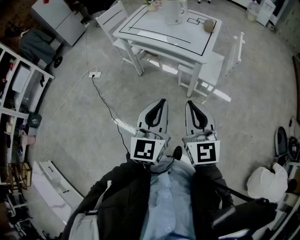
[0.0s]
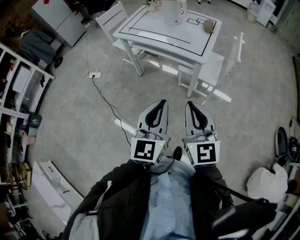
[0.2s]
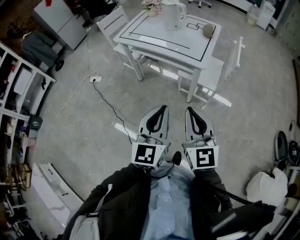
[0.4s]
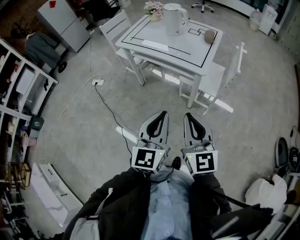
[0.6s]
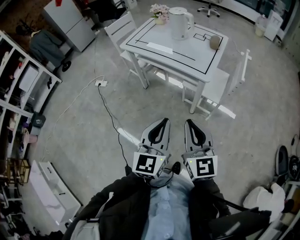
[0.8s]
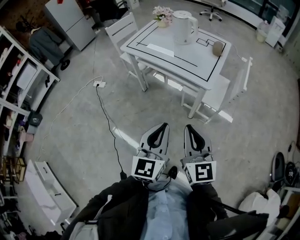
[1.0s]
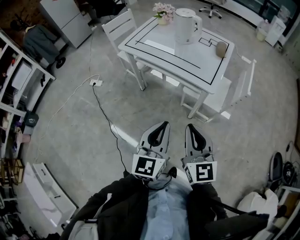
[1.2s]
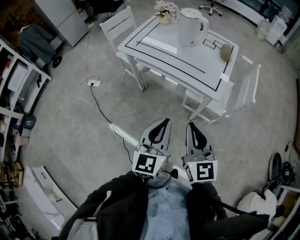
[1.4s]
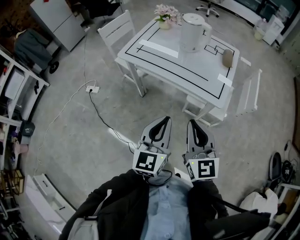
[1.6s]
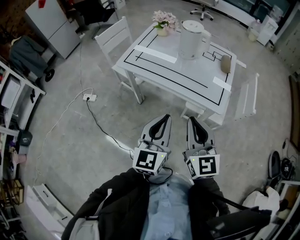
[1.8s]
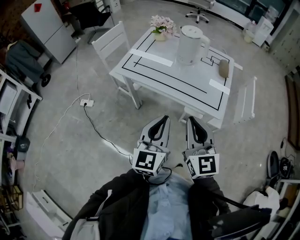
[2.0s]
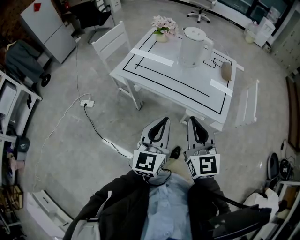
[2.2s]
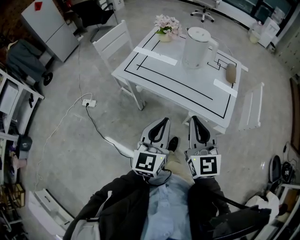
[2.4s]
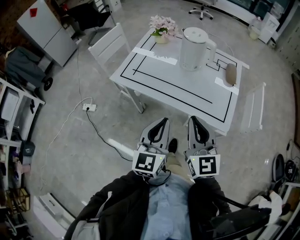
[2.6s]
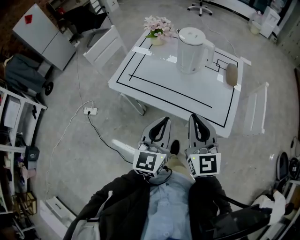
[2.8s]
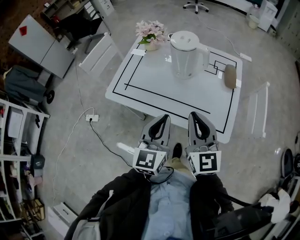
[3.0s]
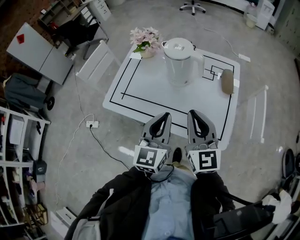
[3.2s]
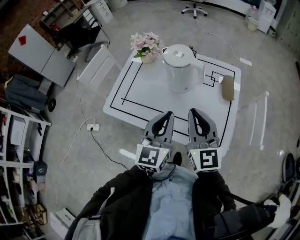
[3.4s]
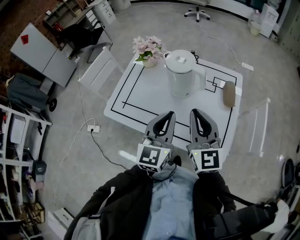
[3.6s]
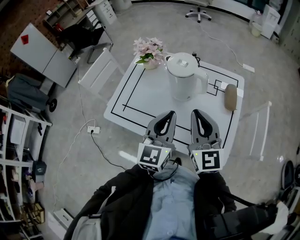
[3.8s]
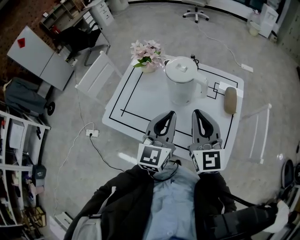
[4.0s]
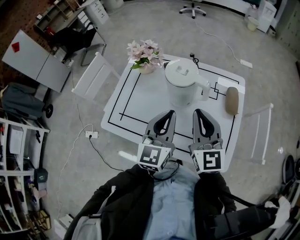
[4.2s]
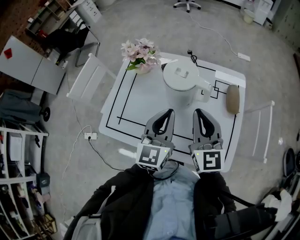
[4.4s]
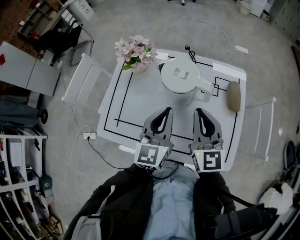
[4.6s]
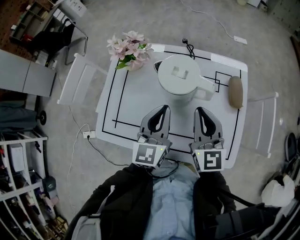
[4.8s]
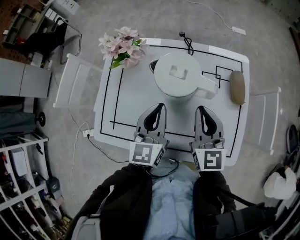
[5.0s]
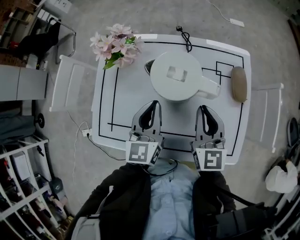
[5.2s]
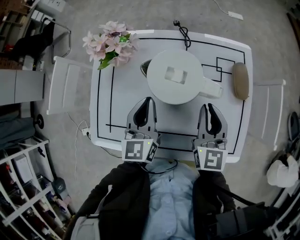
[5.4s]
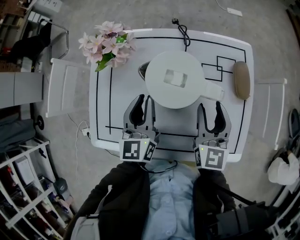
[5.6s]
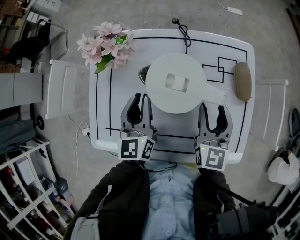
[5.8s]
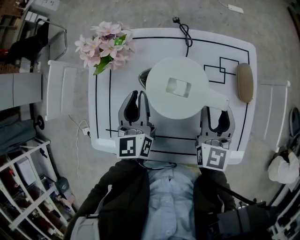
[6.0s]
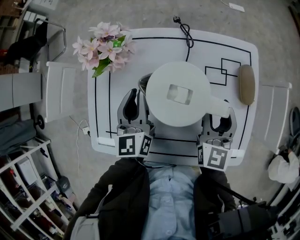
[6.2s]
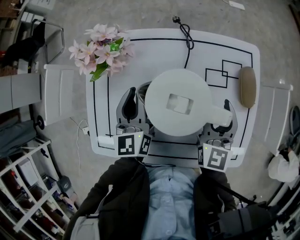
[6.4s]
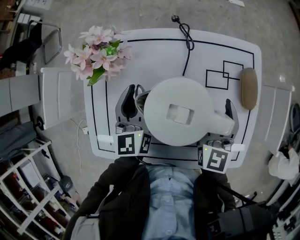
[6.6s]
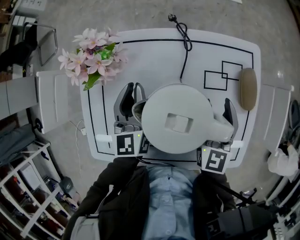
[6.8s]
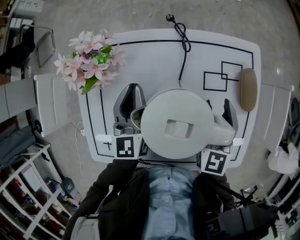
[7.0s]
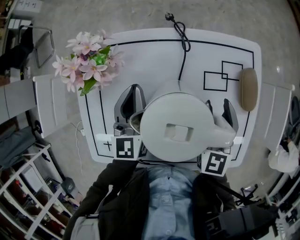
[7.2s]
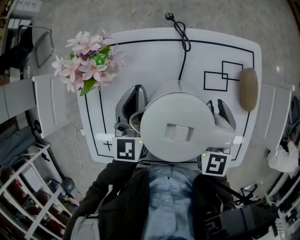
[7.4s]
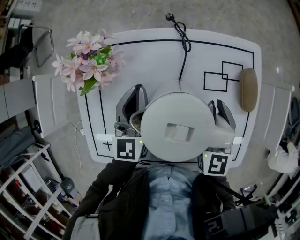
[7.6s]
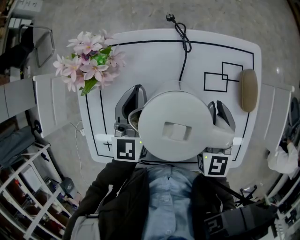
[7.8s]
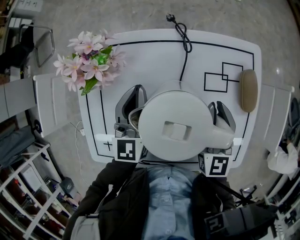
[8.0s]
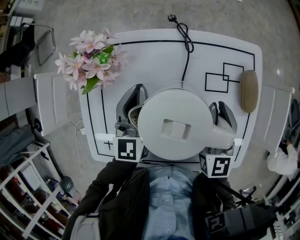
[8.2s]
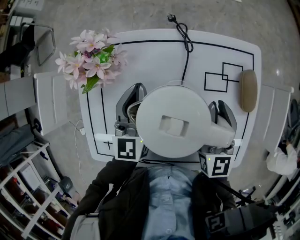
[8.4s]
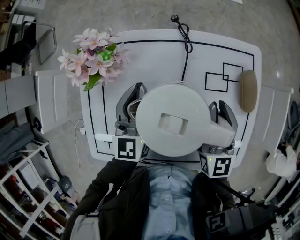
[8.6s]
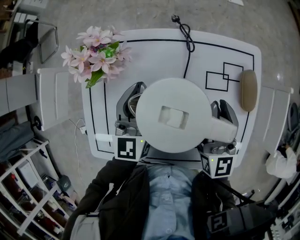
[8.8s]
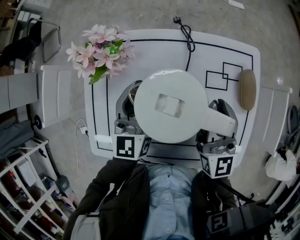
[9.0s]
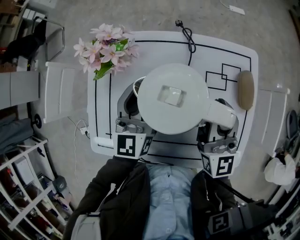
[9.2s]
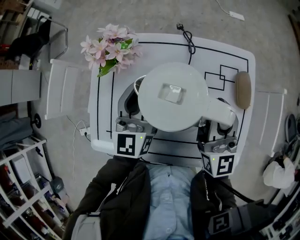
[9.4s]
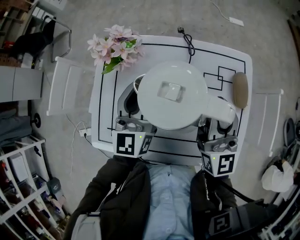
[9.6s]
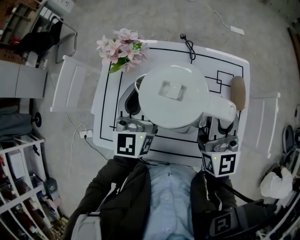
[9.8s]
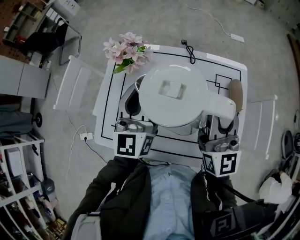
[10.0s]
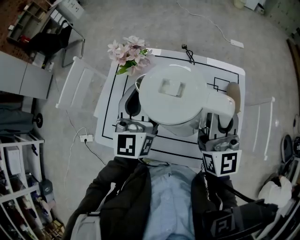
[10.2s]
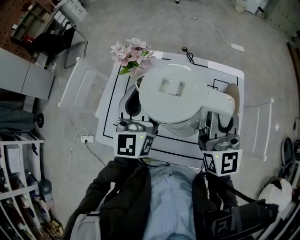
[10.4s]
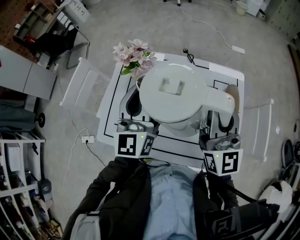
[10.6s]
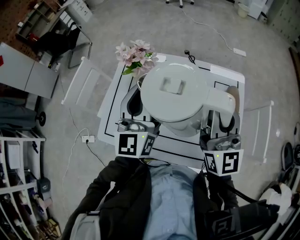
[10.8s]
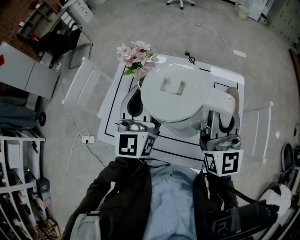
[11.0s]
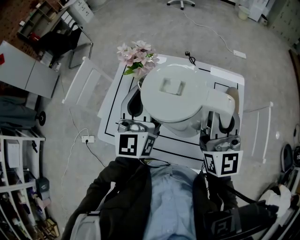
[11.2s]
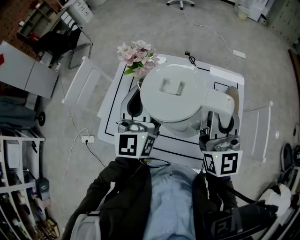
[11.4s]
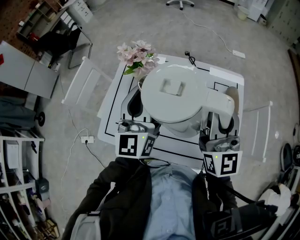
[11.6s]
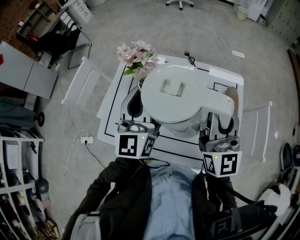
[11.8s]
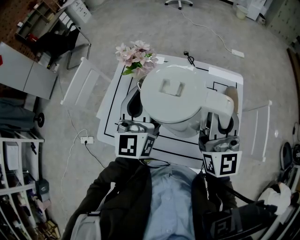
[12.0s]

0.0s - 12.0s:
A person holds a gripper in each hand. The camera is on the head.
0.0s - 1.6s: Both grippers travel together forward, about 20 cm.
1.6s - 3.0s: The two grippers go roughly 25 cm forward.
3.0s - 4.4s: The two grippers go roughly 20 cm forward.
4.4s - 6.0s: The left gripper goes approximately 20 cm forward, downward and to the left, while the right gripper is displaced downward and forward by roughly 15 cm, swivels some 30 degrees, and opens.
6.0s - 7.6s: The grippers both shift forward by about 5 cm. The right gripper closes up.
7.6s - 9.0s: The right gripper heads upward, covering roughly 5 cm.
9.0s - 10.4s: Both grippers move upward and backward, approximately 20 cm.
10.4s - 12.0s: There are only small adjustments of the grippers.

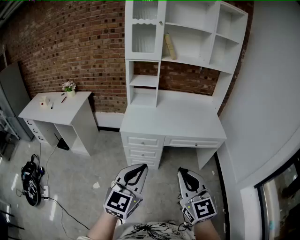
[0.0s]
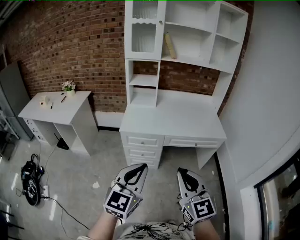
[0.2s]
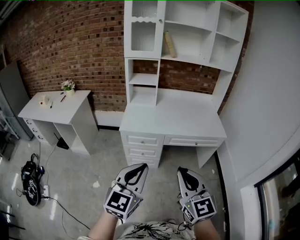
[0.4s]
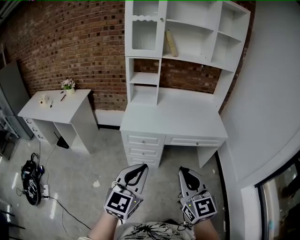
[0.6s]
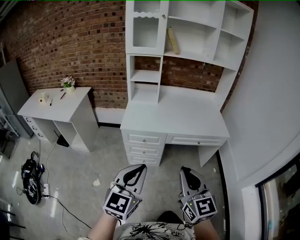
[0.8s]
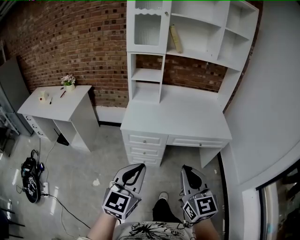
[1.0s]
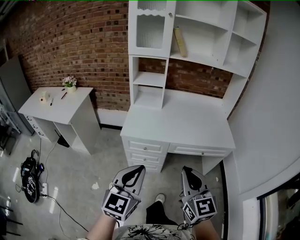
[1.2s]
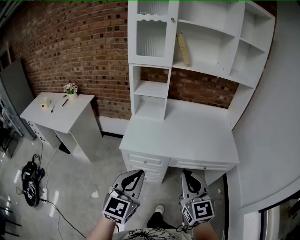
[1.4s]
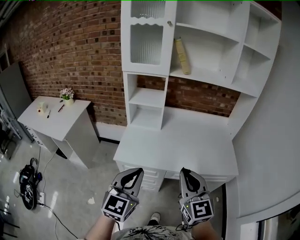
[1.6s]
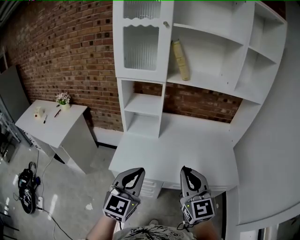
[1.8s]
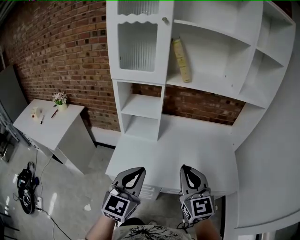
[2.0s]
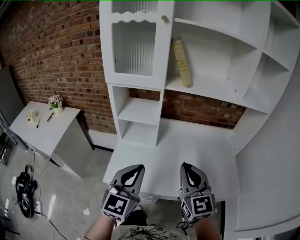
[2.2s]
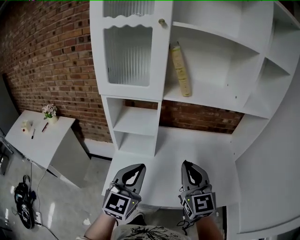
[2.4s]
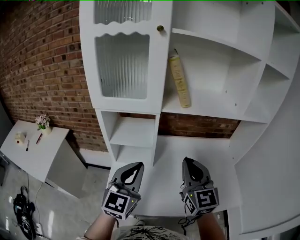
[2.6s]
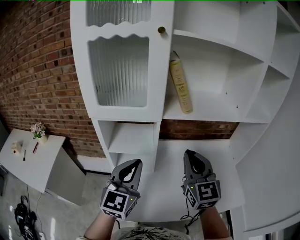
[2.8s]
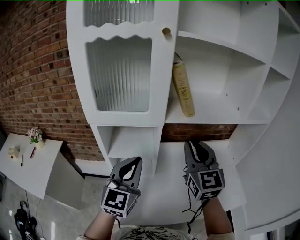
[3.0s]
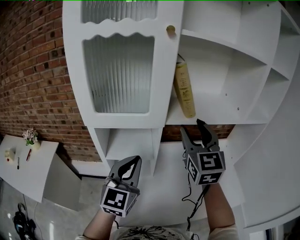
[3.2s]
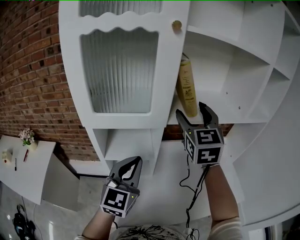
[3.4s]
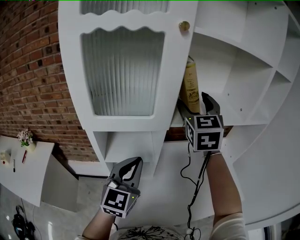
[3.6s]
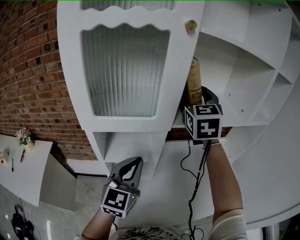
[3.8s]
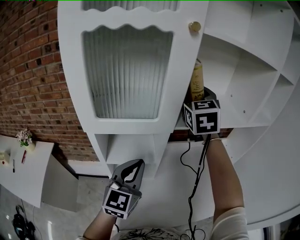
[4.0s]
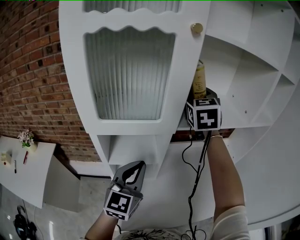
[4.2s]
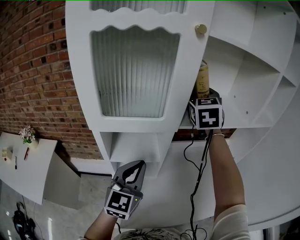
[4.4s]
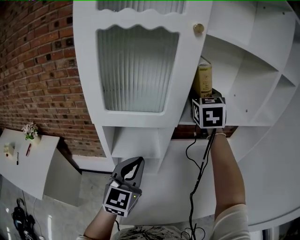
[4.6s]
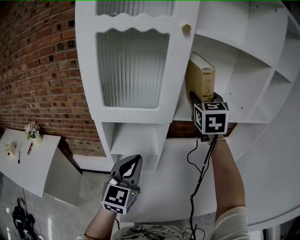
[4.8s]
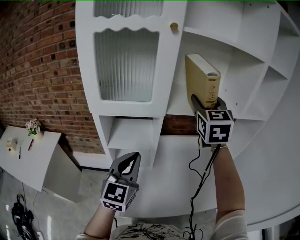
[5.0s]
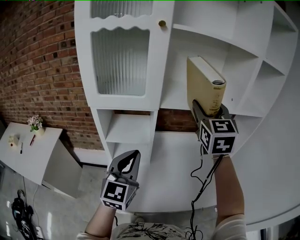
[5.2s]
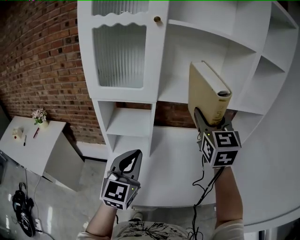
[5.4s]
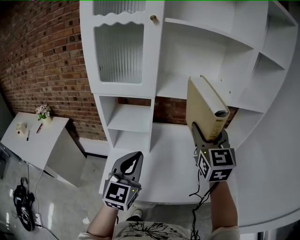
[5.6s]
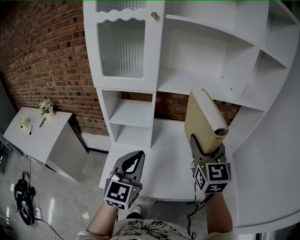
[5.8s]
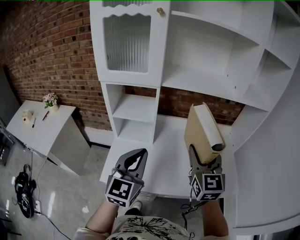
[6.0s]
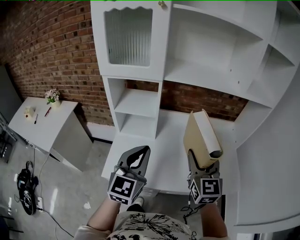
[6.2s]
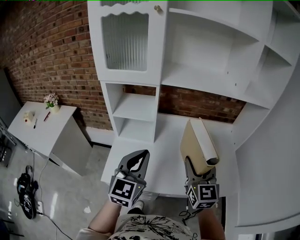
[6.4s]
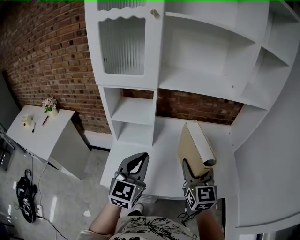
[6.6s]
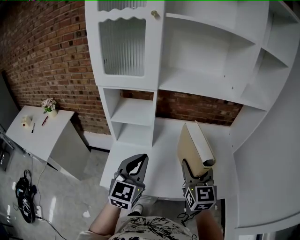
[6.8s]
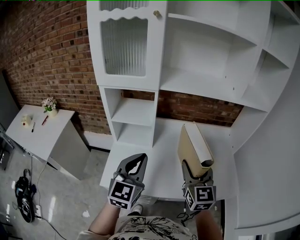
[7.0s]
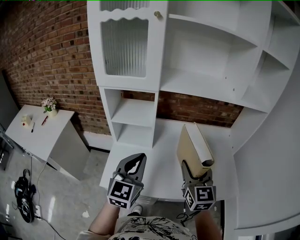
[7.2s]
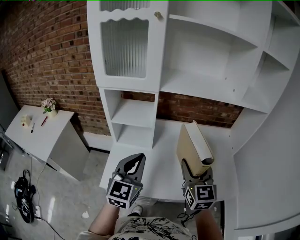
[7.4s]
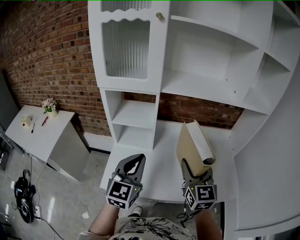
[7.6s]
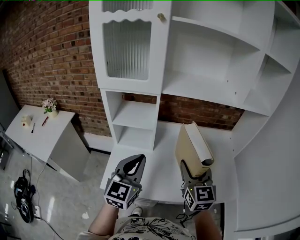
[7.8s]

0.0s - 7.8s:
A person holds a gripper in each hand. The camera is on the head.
0.0s - 1.6s: Both grippers travel together forward, some 30 cm.
1.6s - 3.2s: The pair of grippers is taken forward, roughly 50 cm. The right gripper turns by approximately 20 degrees, and opens.
3.2s - 4.6s: The right gripper heads forward, covering roughly 15 cm.
4.6s - 6.2s: The left gripper moves backward and to the right, some 20 cm, while the right gripper moves backward, downward and to the right, about 40 cm, and changes its angle by approximately 20 degrees.
6.2s - 7.8s: The grippers move only a little.

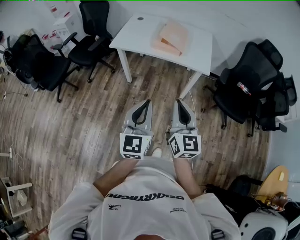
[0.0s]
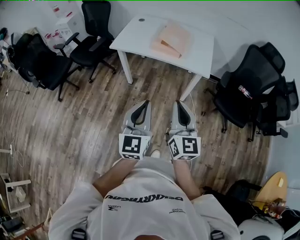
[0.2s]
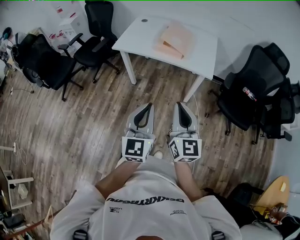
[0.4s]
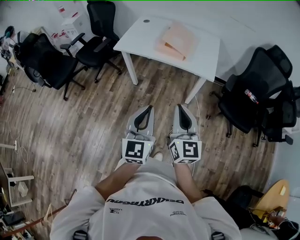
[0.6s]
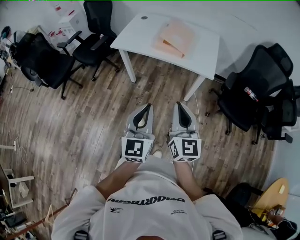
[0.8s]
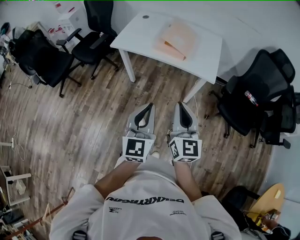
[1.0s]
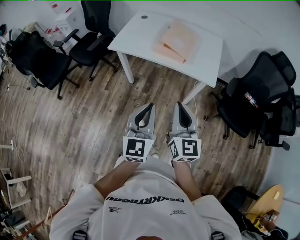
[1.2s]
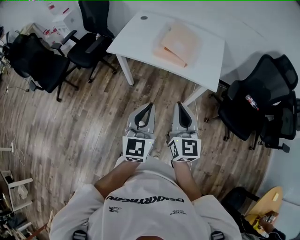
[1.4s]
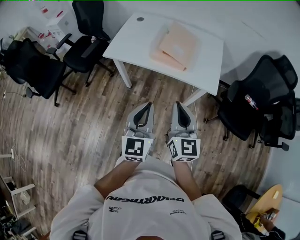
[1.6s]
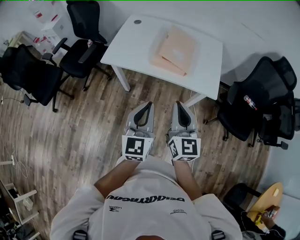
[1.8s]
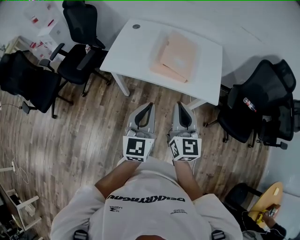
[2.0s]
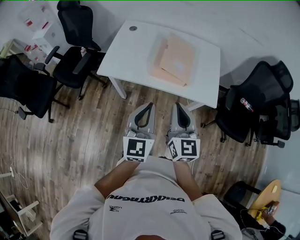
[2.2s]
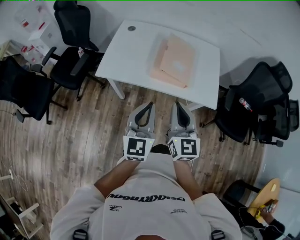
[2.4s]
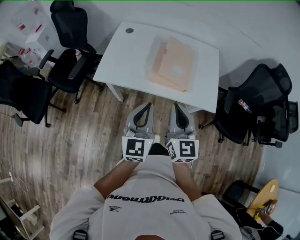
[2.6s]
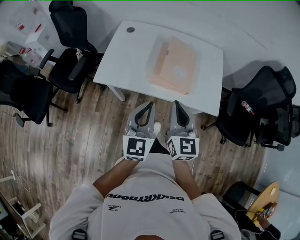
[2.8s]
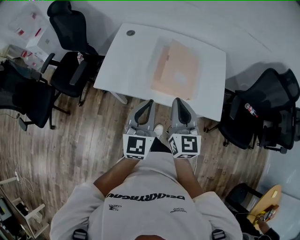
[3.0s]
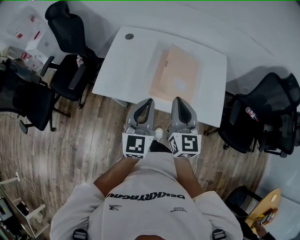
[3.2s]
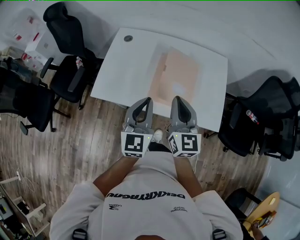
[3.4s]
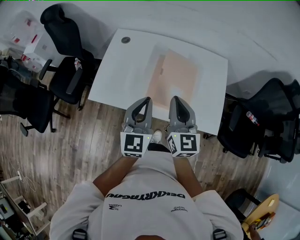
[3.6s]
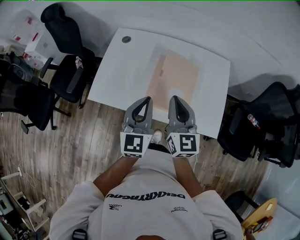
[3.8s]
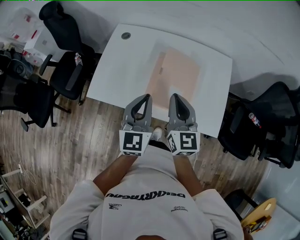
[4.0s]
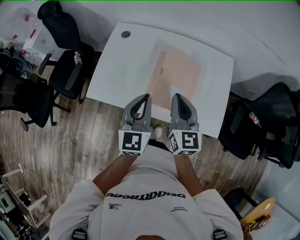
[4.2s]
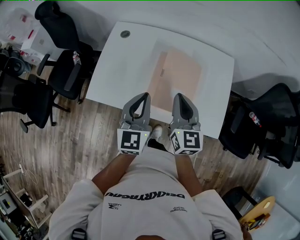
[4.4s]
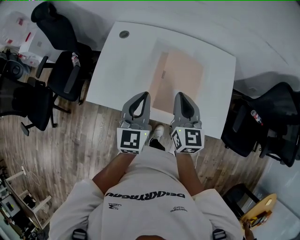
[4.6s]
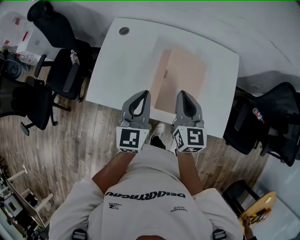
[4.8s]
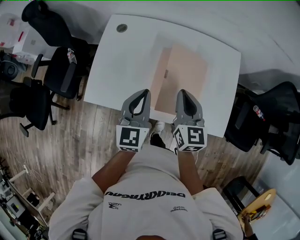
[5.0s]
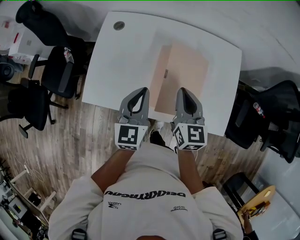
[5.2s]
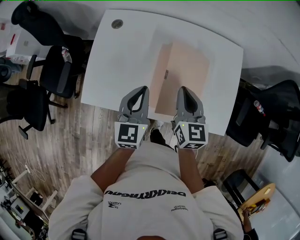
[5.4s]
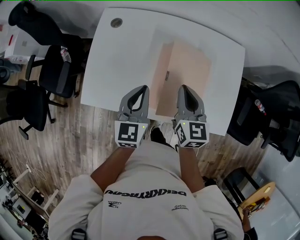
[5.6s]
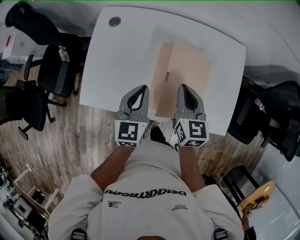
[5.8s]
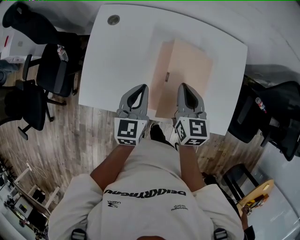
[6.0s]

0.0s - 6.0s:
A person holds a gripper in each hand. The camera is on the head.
0.0s - 1.6s: The two grippers go roughly 20 cm forward.
1.6s - 3.0s: Both grippers travel together forward, roughly 25 cm.
3.0s - 4.4s: The two grippers go about 15 cm forward.
4.4s - 6.0s: The two grippers go about 15 cm downward and forward.
